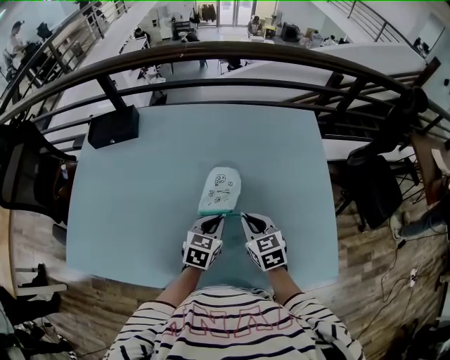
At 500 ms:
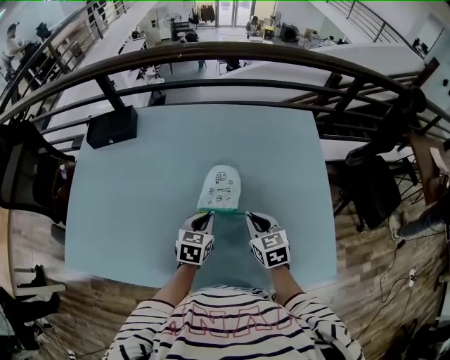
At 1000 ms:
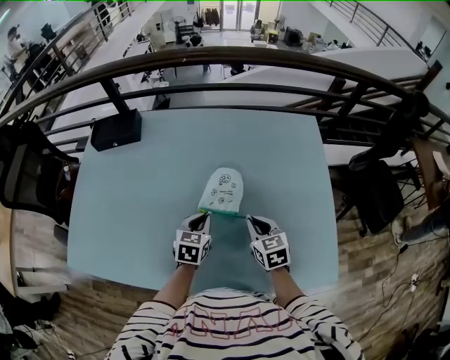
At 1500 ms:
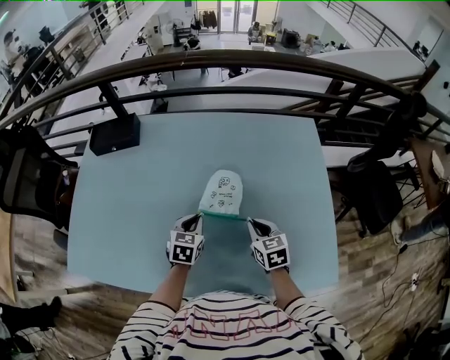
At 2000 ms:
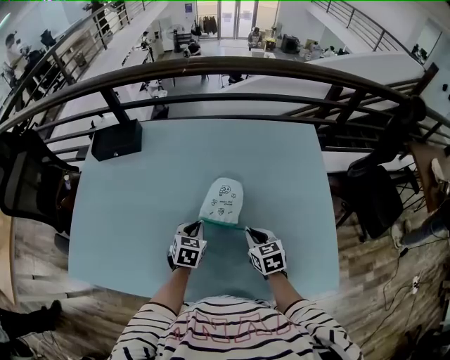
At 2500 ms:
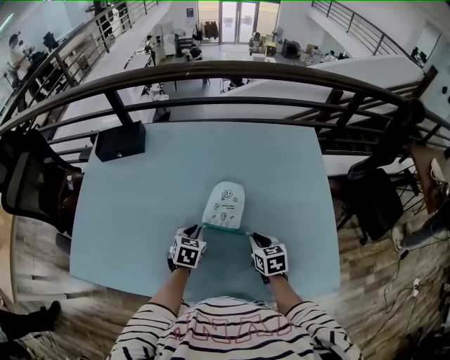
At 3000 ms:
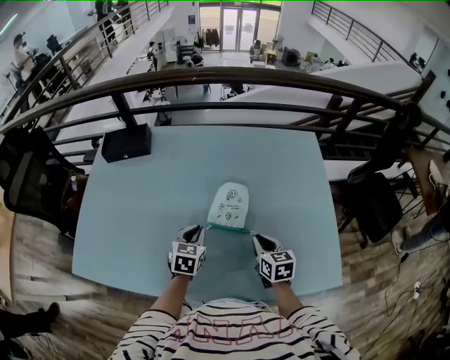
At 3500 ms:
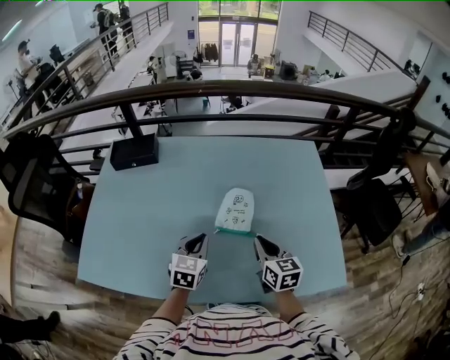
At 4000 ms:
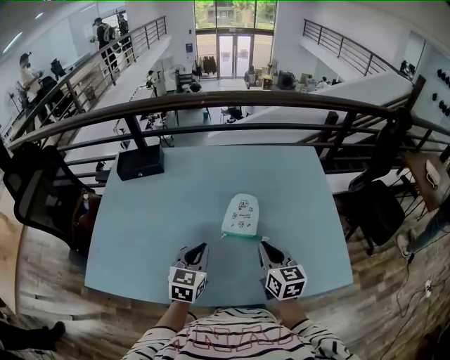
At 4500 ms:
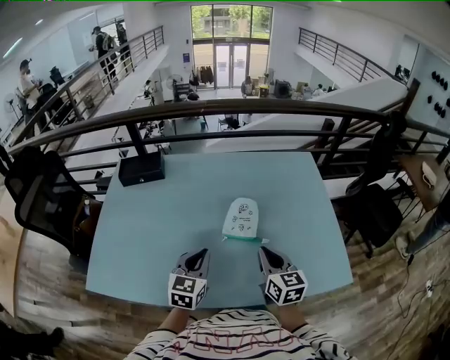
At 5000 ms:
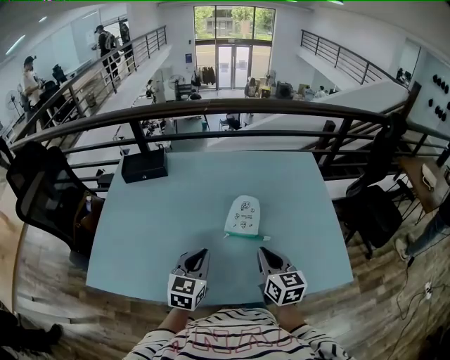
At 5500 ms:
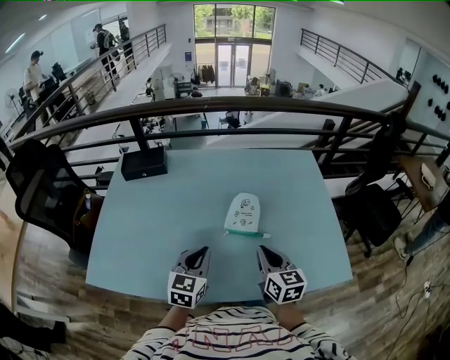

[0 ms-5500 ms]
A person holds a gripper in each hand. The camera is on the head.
0 ms to 2000 ms: The left gripper goes some 10 cm to the left.
2000 ms to 3500 ms: The left gripper shifts about 10 cm upward and backward; the right gripper goes roughly 10 cm upward, and swivels roughly 20 degrees.
3500 ms to 5500 ms: The right gripper goes some 5 cm backward. The left gripper is displaced backward and upward by approximately 10 cm.

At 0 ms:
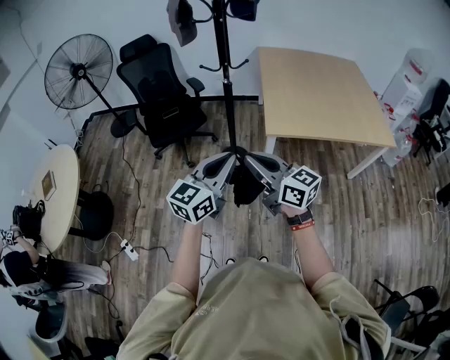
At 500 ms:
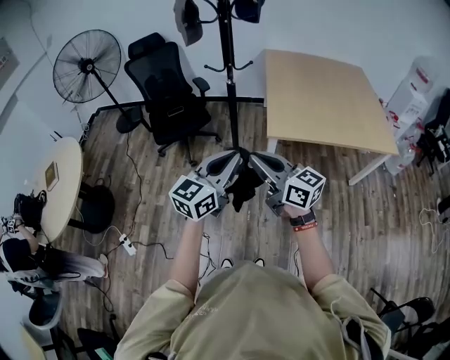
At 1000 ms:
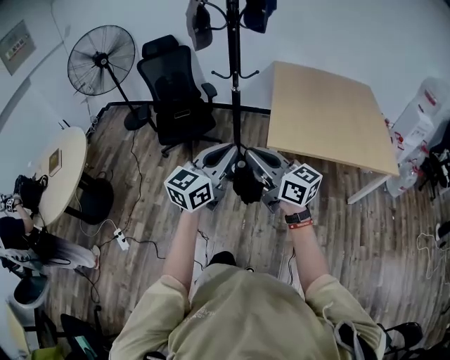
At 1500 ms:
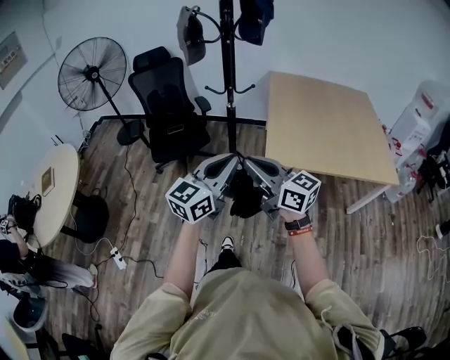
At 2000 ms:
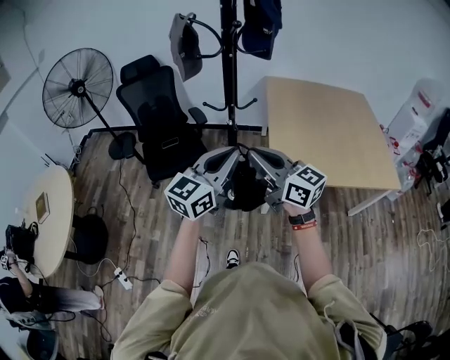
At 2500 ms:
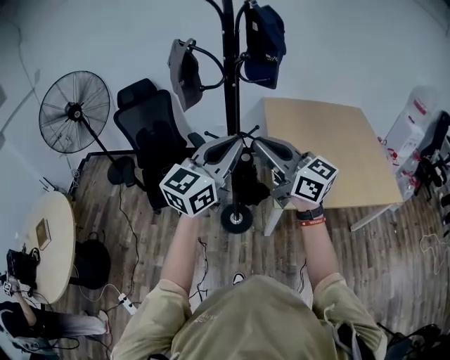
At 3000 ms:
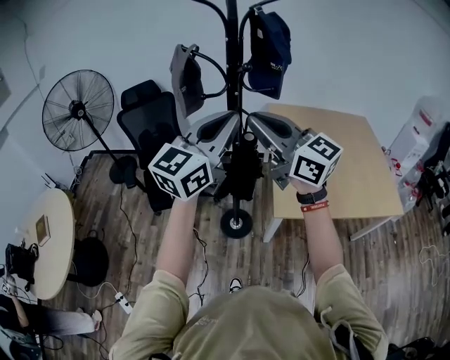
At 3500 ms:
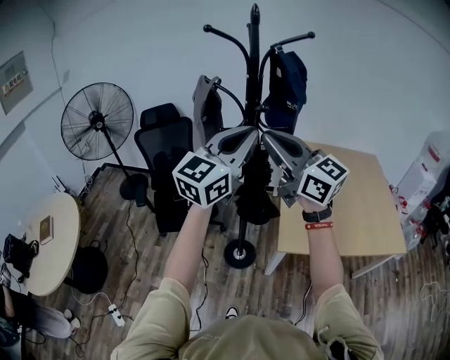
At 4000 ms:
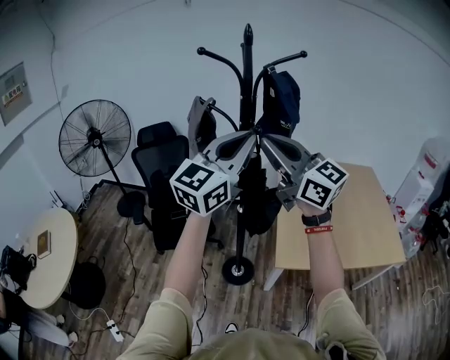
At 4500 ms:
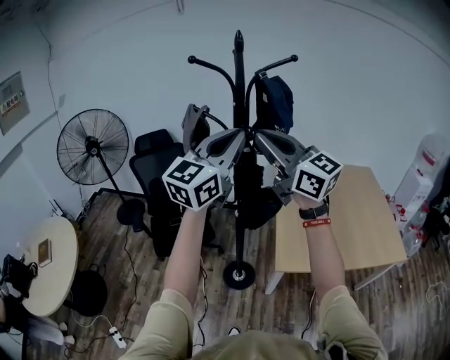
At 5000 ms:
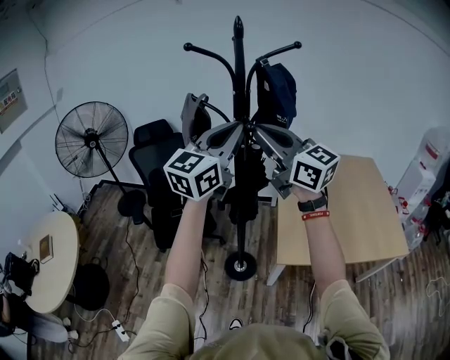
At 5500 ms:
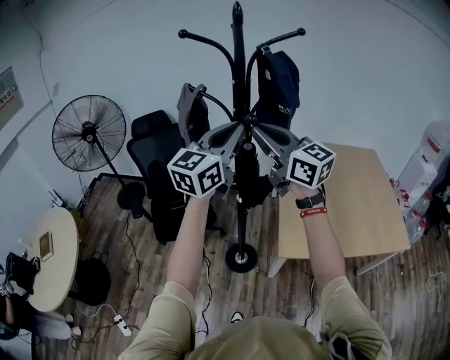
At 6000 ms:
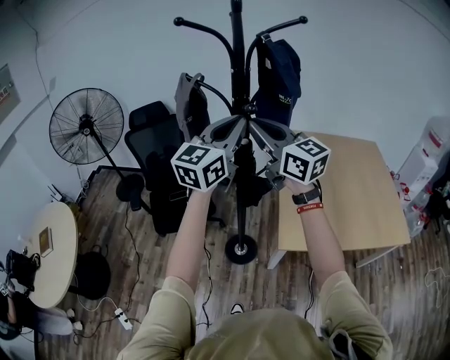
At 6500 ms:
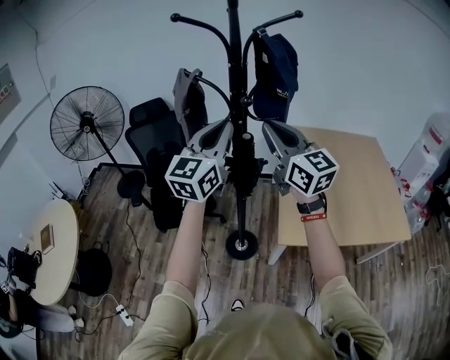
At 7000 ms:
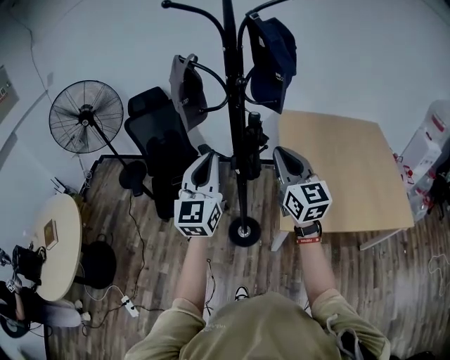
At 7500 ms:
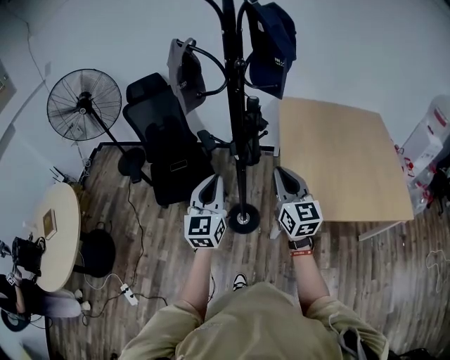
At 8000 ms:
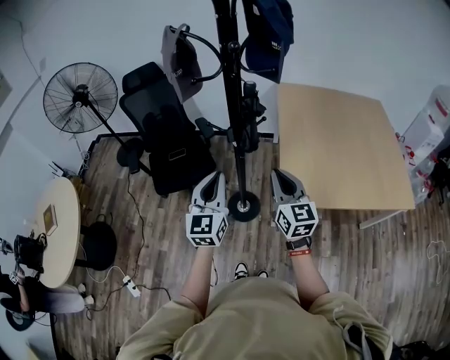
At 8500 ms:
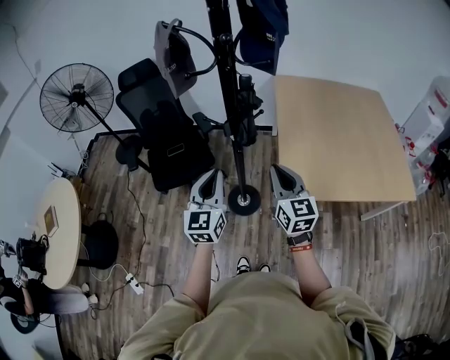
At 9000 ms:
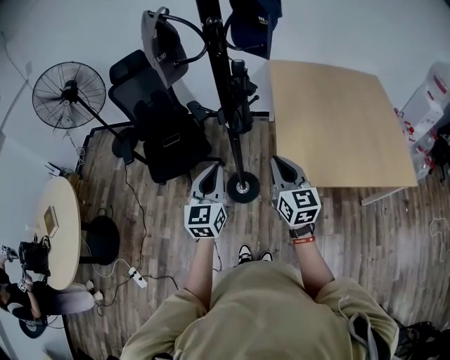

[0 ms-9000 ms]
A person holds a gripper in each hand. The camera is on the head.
0 ms to 2000 ms: Both grippers move forward, about 20 cm.
2000 ms to 4500 ms: Both grippers move upward and forward, roughly 35 cm. The right gripper rotates about 20 degrees. The left gripper turns by some 20 degrees.
4500 ms to 7000 ms: Both grippers move downward, roughly 20 cm. The right gripper rotates roughly 30 degrees, while the left gripper turns by approximately 30 degrees.
7000 ms to 9000 ms: The grippers both shift downward by approximately 20 cm.

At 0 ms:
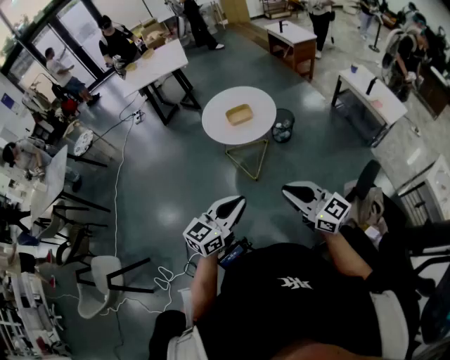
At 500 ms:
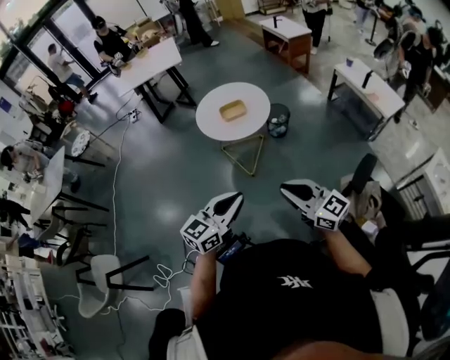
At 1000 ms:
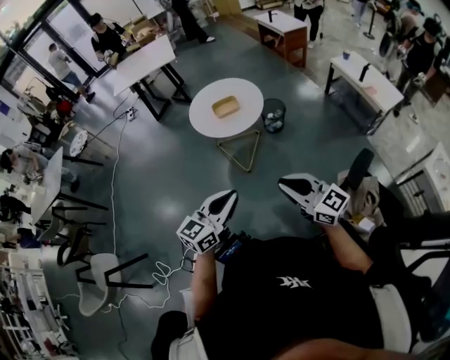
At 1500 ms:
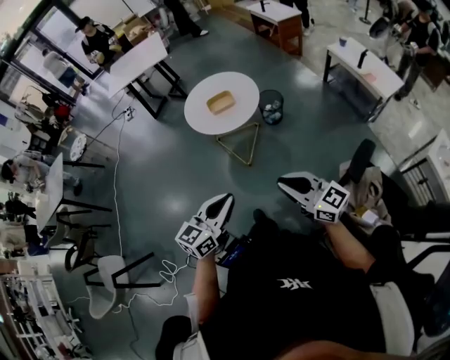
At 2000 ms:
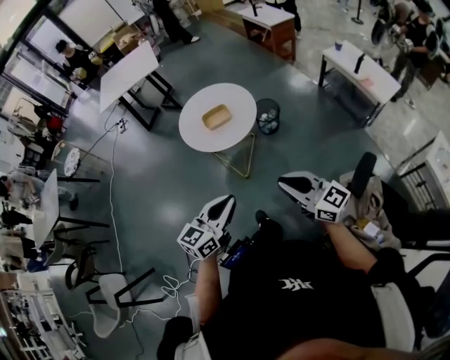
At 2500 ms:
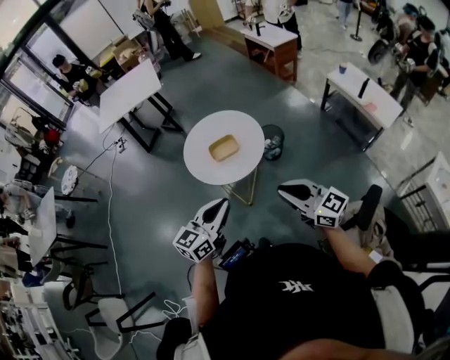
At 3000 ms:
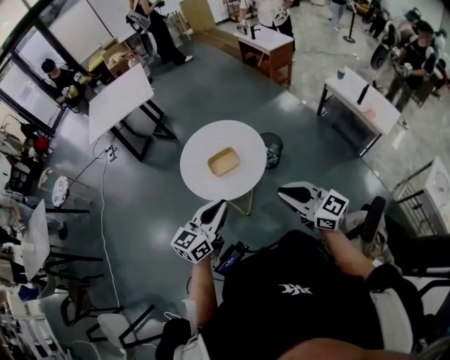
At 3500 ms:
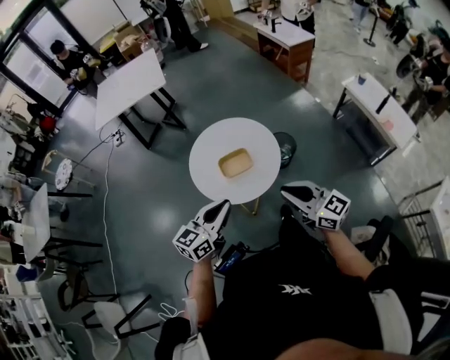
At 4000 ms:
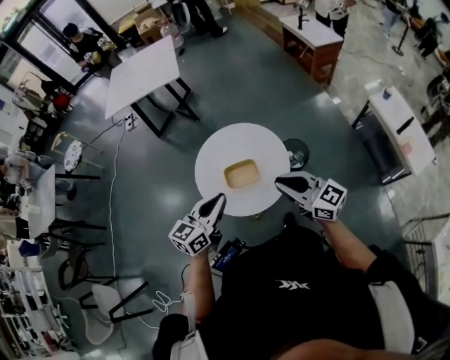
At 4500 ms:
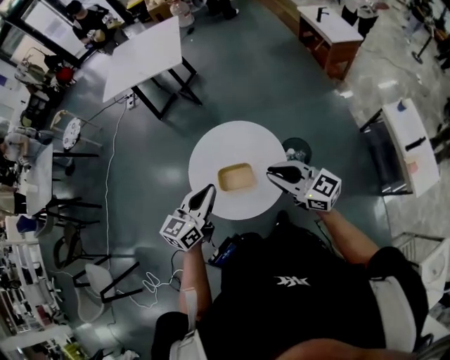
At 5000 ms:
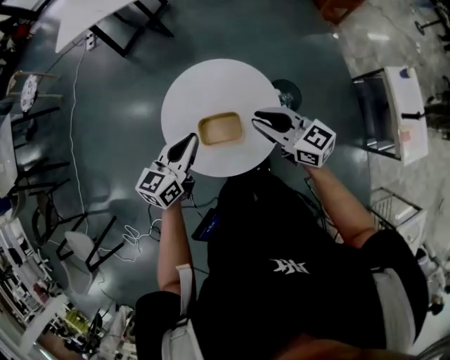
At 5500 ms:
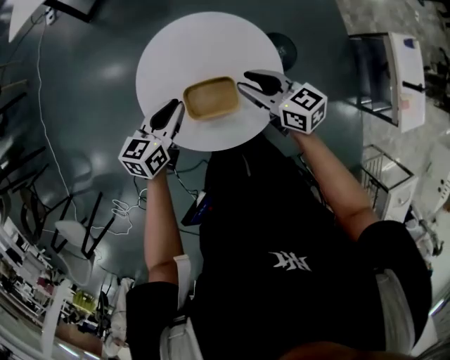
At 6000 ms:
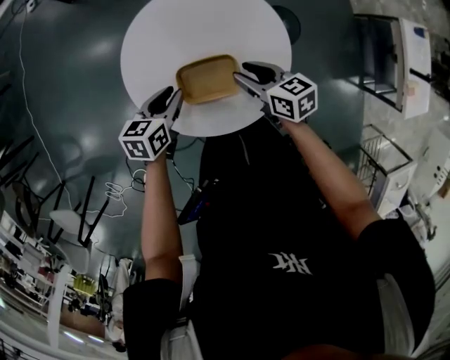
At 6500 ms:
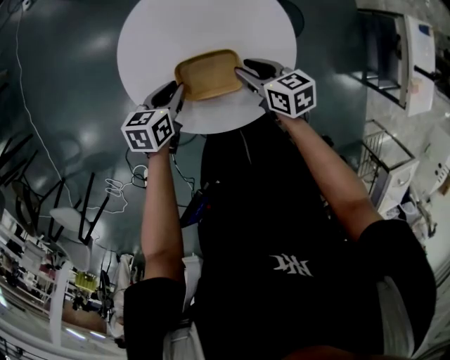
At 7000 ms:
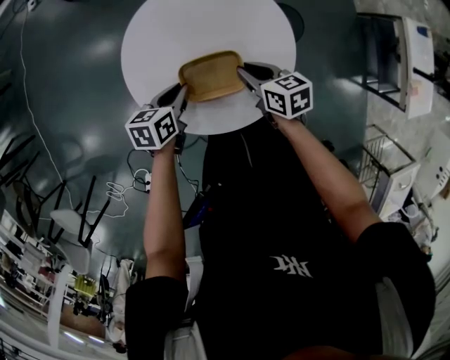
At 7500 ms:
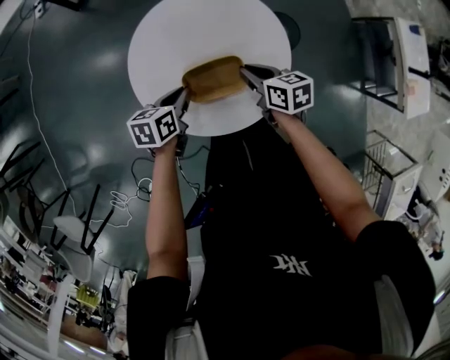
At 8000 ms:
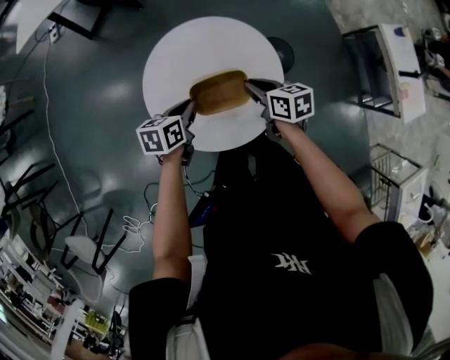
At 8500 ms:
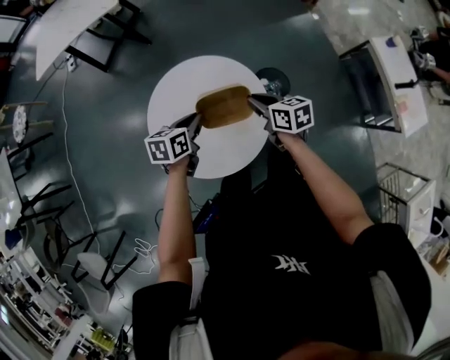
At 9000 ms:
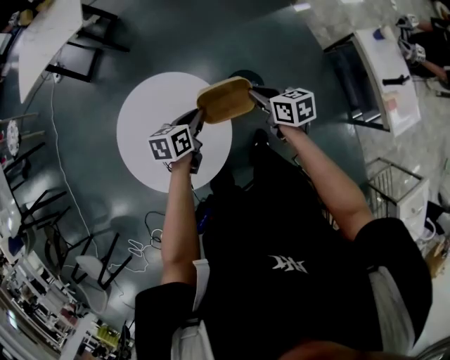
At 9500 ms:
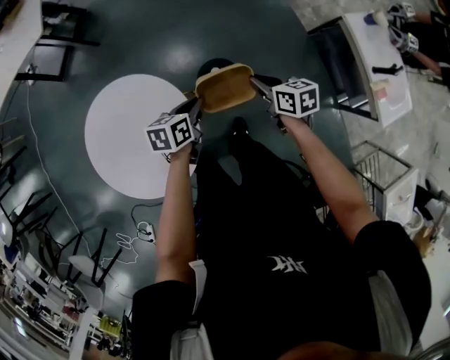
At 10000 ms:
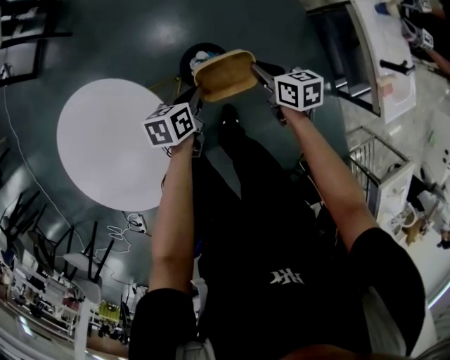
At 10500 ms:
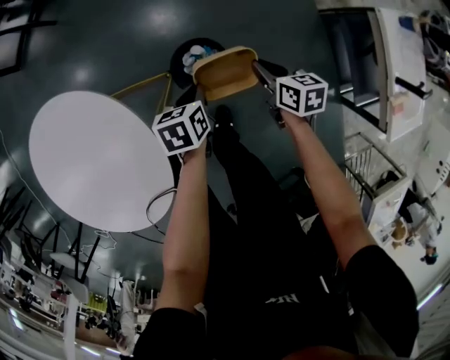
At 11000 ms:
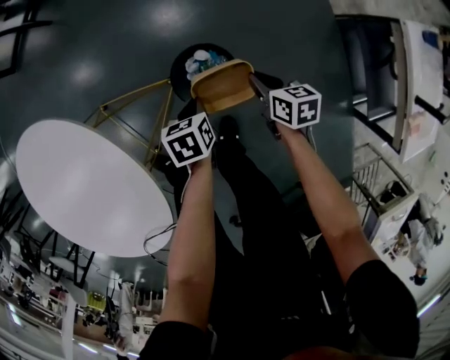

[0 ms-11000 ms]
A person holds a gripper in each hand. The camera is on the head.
0 ms to 2000 ms: The left gripper shifts about 10 cm forward; the right gripper goes approximately 10 cm forward and to the right.
2000 ms to 3500 ms: Both grippers move forward, some 30 cm.
3500 ms to 5500 ms: The two grippers go roughly 35 cm forward and downward. The left gripper rotates approximately 30 degrees, while the right gripper turns by about 30 degrees, and opens up.
5500 ms to 7500 ms: Both grippers move downward, some 10 cm. The right gripper rotates roughly 20 degrees, and closes up. The left gripper turns by about 20 degrees.
7500 ms to 9000 ms: The two grippers go approximately 25 cm to the right and forward.
9000 ms to 11000 ms: The left gripper shifts some 35 cm downward, and swivels about 30 degrees. Meanwhile the right gripper shifts some 40 cm downward and to the right.

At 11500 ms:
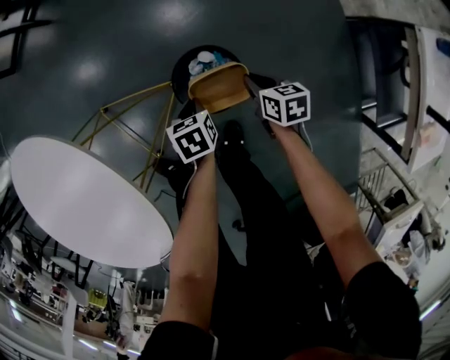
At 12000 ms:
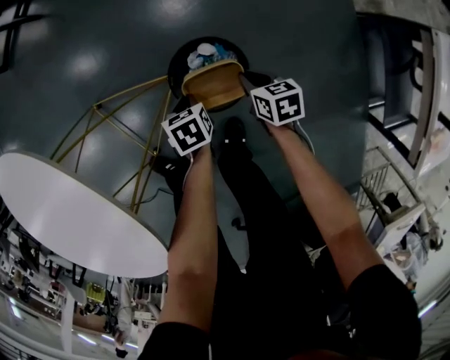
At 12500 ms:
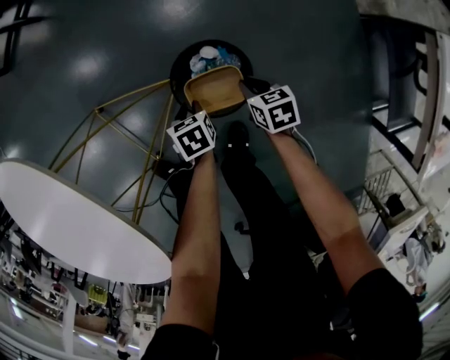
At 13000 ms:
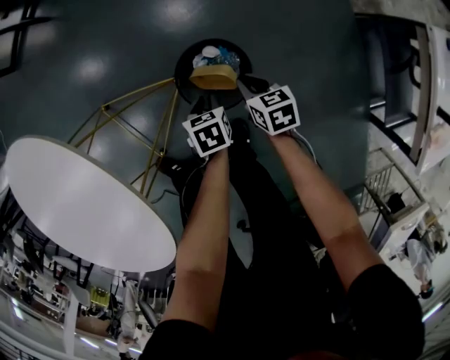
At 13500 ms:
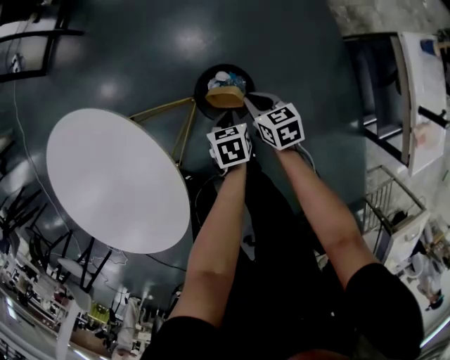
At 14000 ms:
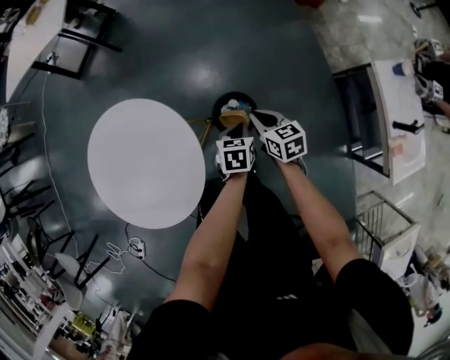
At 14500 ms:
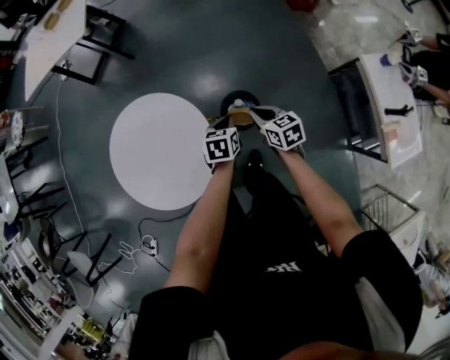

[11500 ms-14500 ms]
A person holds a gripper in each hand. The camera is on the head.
11500 ms to 13000 ms: The right gripper moves roughly 10 cm downward and comes back.
13000 ms to 14500 ms: Both grippers move upward, roughly 40 cm. The left gripper swivels some 20 degrees.
